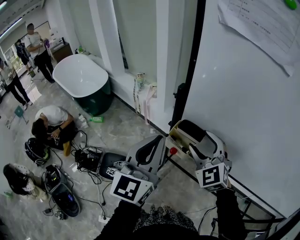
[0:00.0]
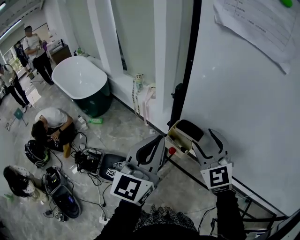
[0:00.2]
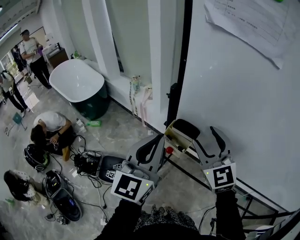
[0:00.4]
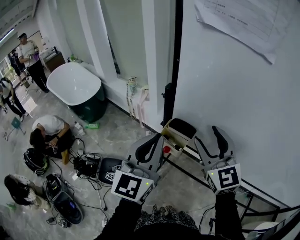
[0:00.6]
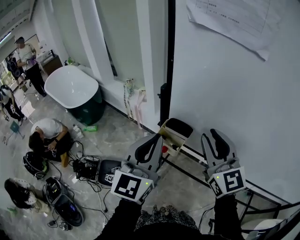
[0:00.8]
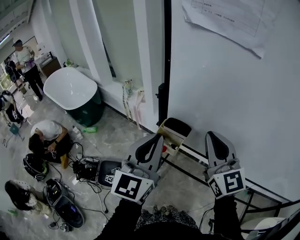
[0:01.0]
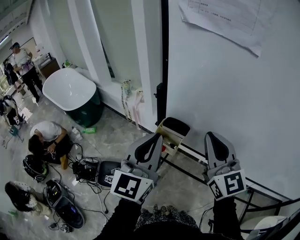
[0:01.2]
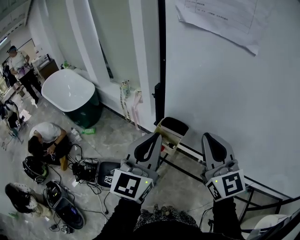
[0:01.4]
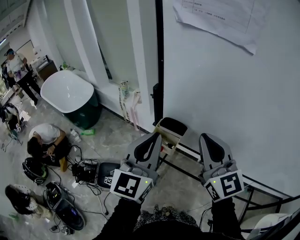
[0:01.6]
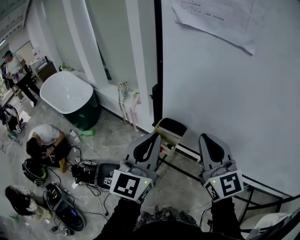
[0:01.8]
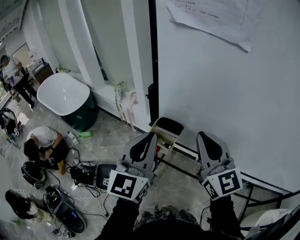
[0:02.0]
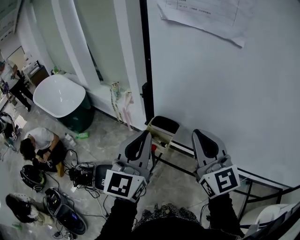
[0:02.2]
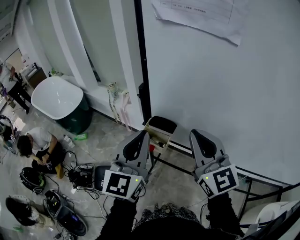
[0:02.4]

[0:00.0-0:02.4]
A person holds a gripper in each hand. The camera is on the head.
0:00.0 to 0:01.2: The left gripper ends up approximately 5 cm from where it was, while the right gripper heads upward, to the right and backward, covering some 15 cm, swivels some 40 degrees, and closes its fingers.
0:01.2 to 0:02.4: Both grippers stay about where they are.

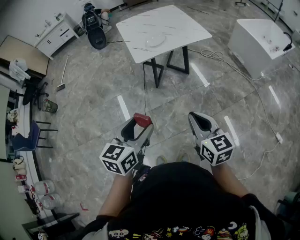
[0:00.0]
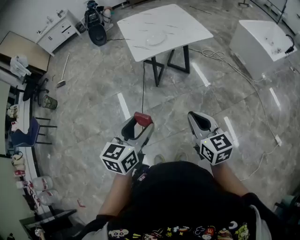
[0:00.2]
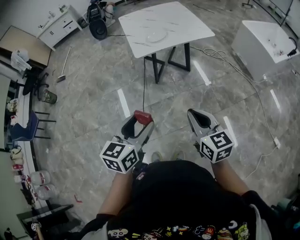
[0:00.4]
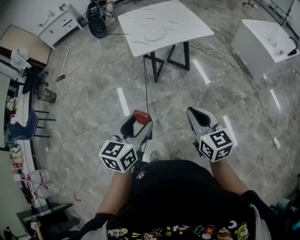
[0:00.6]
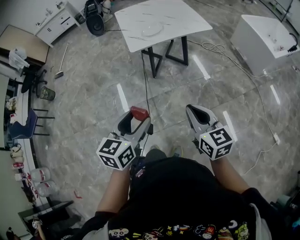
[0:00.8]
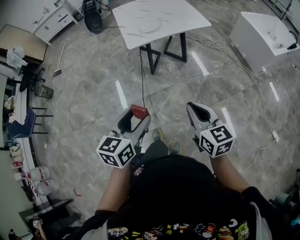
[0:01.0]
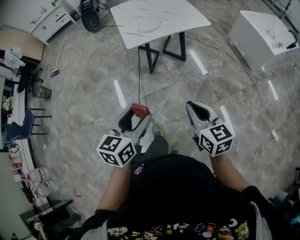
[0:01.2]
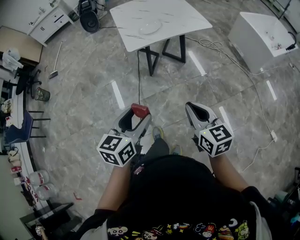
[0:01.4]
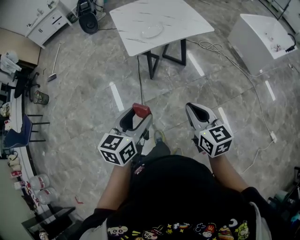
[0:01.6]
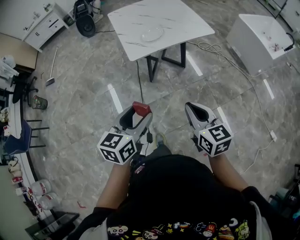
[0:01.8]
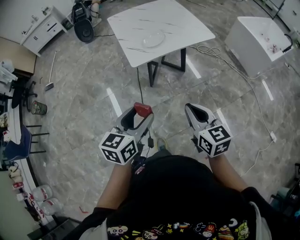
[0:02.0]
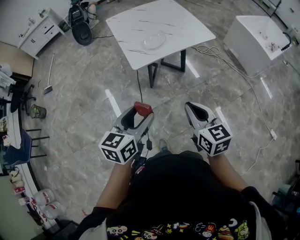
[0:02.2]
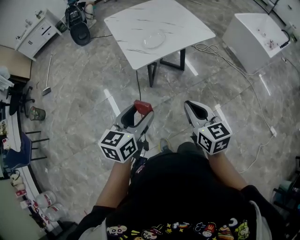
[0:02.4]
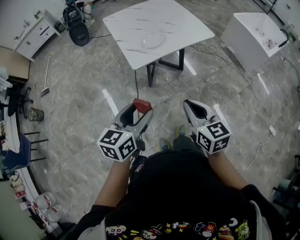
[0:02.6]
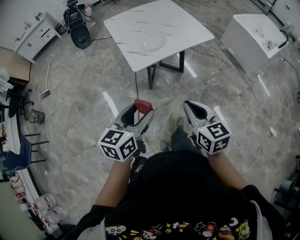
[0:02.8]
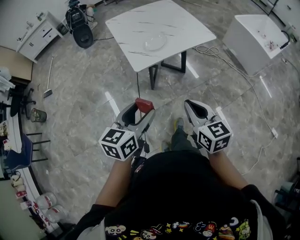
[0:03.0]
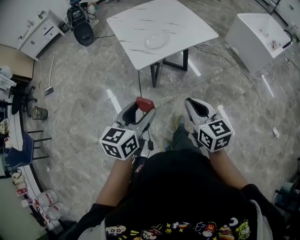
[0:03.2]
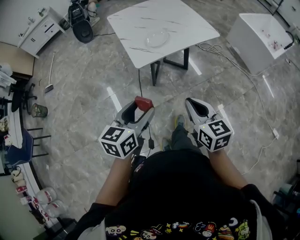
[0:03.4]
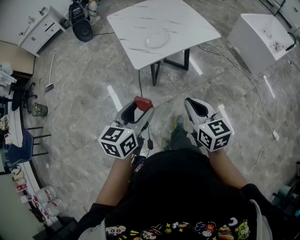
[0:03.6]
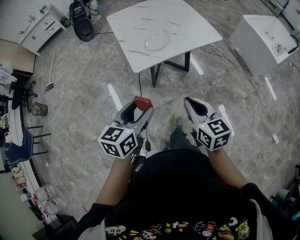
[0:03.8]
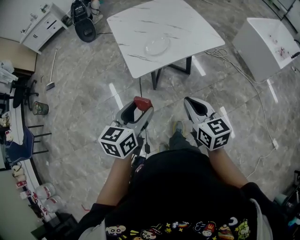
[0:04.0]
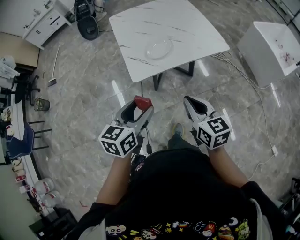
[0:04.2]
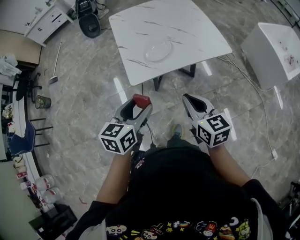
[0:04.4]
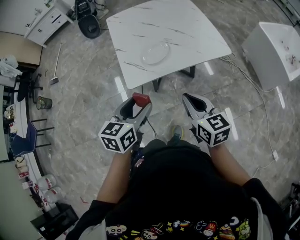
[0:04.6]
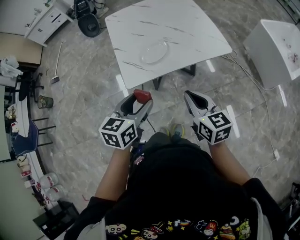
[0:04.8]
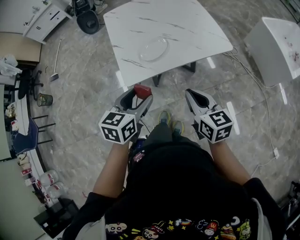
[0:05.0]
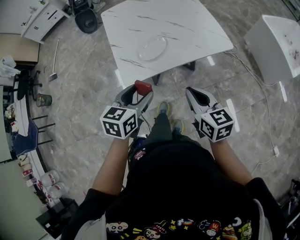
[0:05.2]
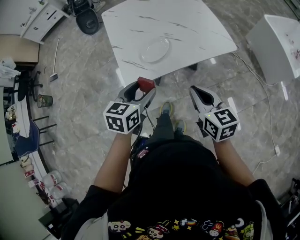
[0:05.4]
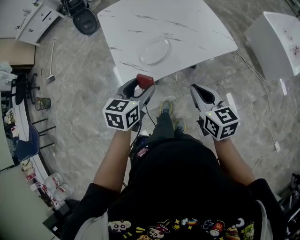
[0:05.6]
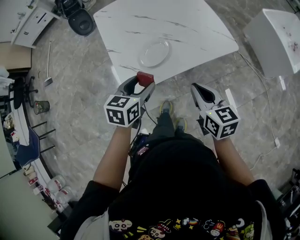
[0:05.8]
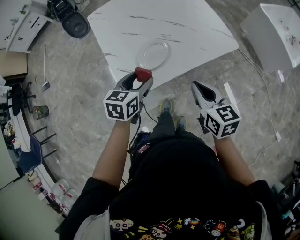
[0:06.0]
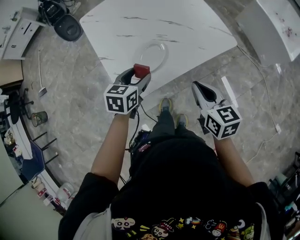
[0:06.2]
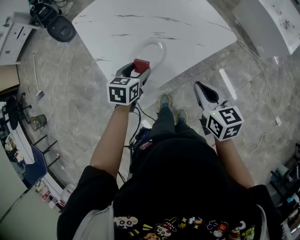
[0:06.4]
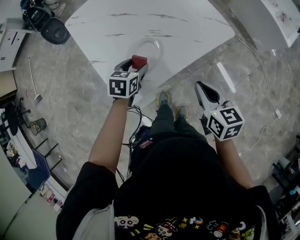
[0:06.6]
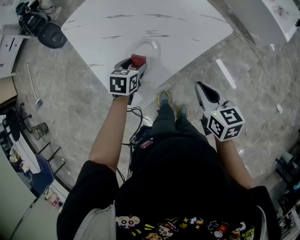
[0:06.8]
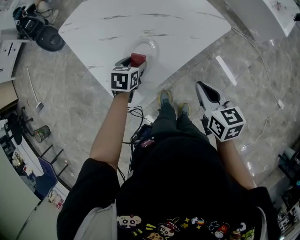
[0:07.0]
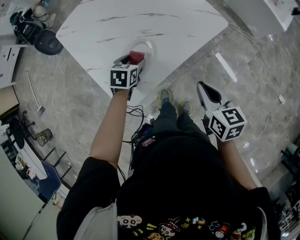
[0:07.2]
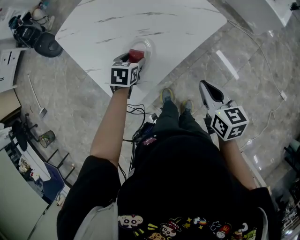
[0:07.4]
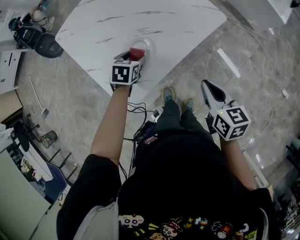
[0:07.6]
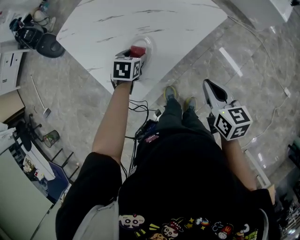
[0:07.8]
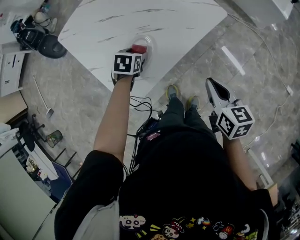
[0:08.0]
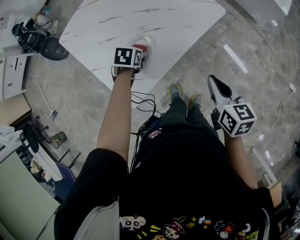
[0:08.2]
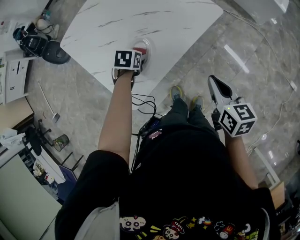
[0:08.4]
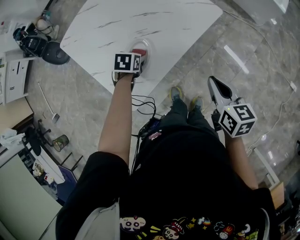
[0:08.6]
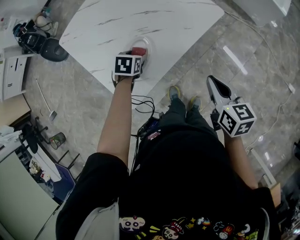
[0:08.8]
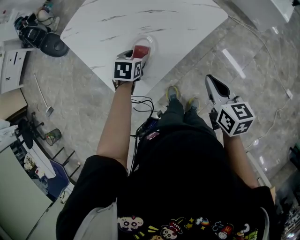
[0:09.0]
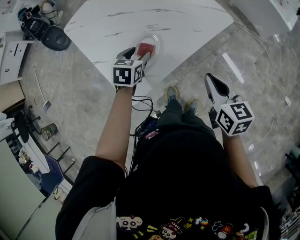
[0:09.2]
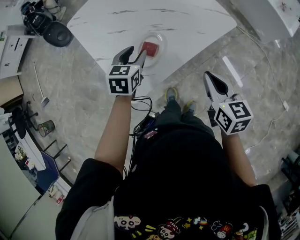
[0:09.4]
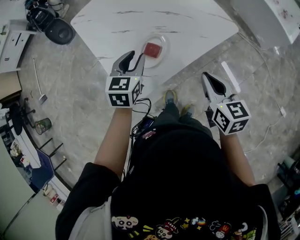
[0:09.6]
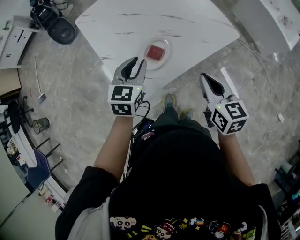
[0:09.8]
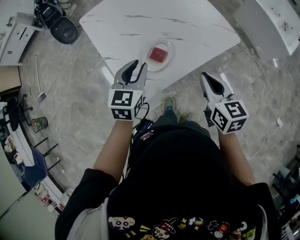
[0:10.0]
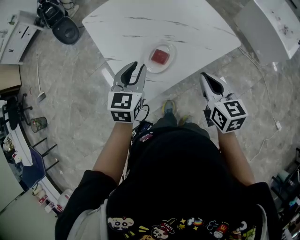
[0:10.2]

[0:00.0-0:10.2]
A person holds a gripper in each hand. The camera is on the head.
0:00.0 to 0:01.4: The left gripper ends up some 5 cm from where it was. The right gripper shifts by about 5 cm.
0:01.4 to 0:03.0: The two grippers go roughly 20 cm forward and to the left.
0:03.0 to 0:04.4: The grippers both shift forward by about 20 cm.
0:04.4 to 0:05.8: Both grippers travel together forward, about 15 cm.
0:05.8 to 0:07.2: The left gripper is displaced forward and downward by some 25 cm, and changes its angle by approximately 20 degrees. Meanwhile the right gripper is displaced downward by about 5 cm, and changes its angle by roughly 20 degrees.
0:07.2 to 0:08.8: There are only small adjustments of the grippers.
0:08.8 to 0:10.2: The right gripper heads to the left, covering some 10 cm, while the left gripper moves upward, backward and to the left, roughly 20 cm, angles its fingers upward, by some 40 degrees, and closes.

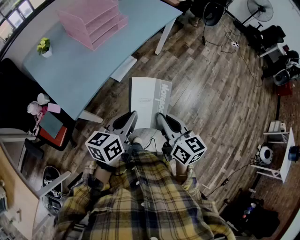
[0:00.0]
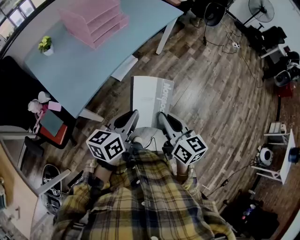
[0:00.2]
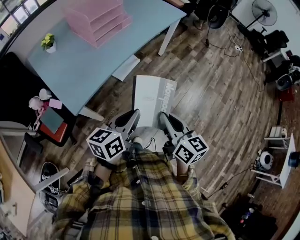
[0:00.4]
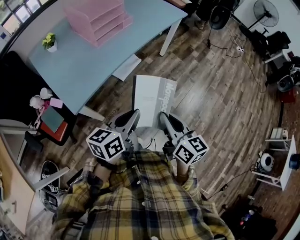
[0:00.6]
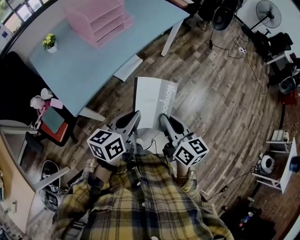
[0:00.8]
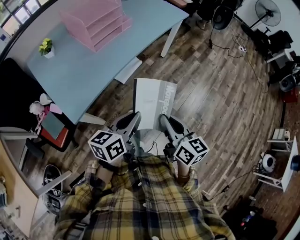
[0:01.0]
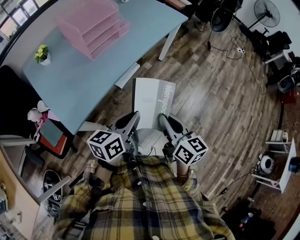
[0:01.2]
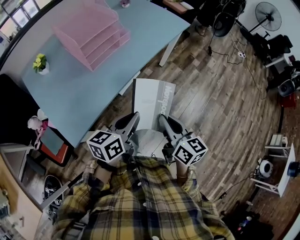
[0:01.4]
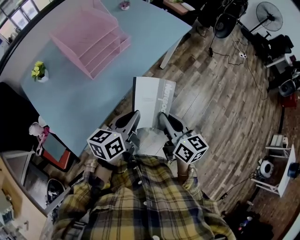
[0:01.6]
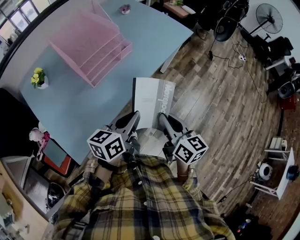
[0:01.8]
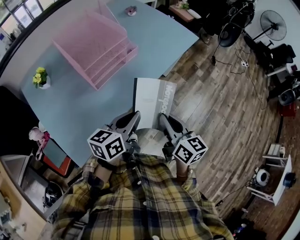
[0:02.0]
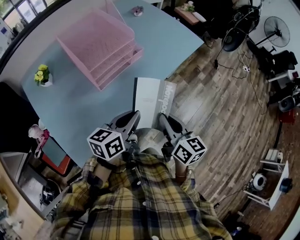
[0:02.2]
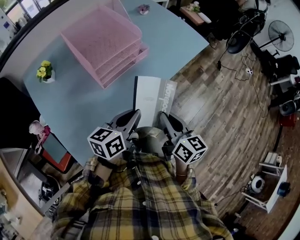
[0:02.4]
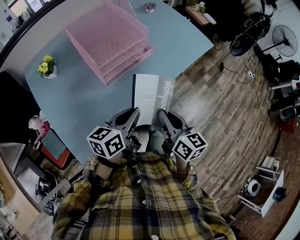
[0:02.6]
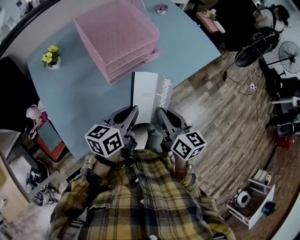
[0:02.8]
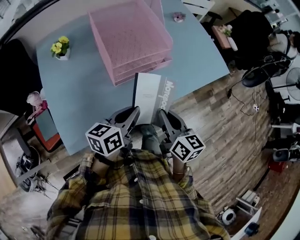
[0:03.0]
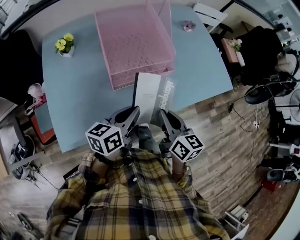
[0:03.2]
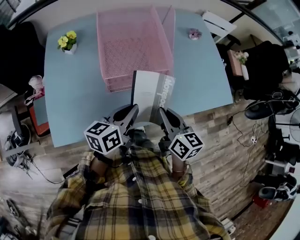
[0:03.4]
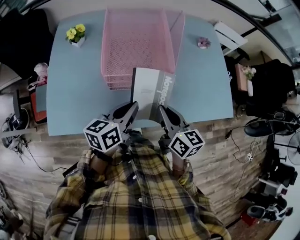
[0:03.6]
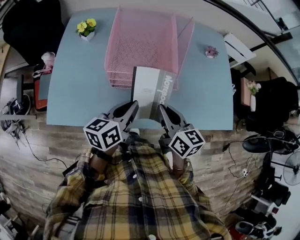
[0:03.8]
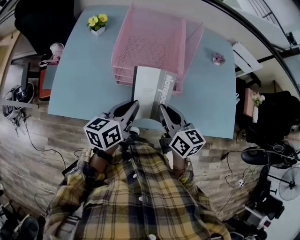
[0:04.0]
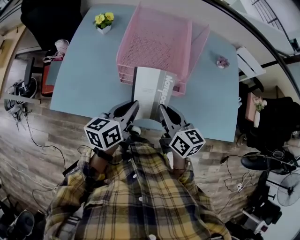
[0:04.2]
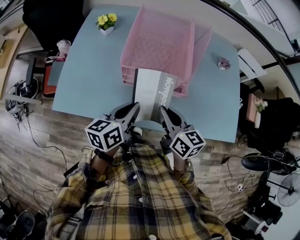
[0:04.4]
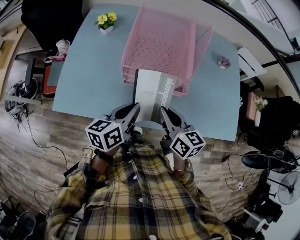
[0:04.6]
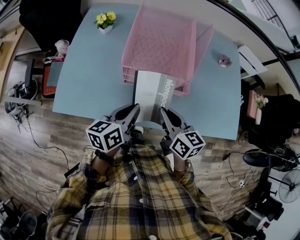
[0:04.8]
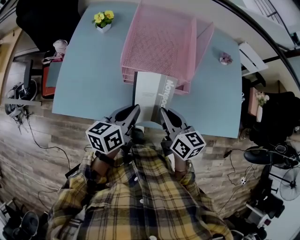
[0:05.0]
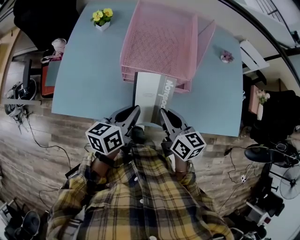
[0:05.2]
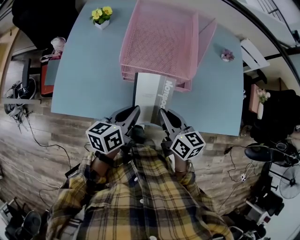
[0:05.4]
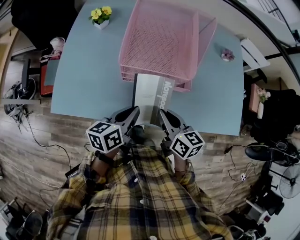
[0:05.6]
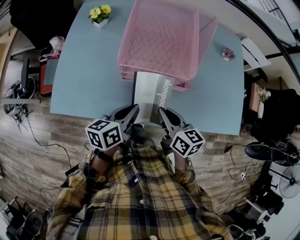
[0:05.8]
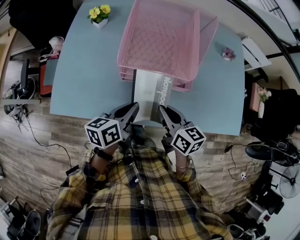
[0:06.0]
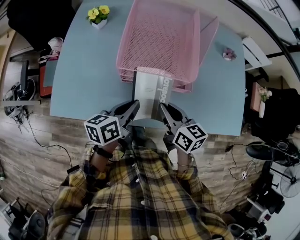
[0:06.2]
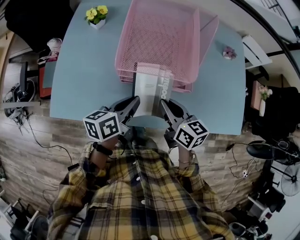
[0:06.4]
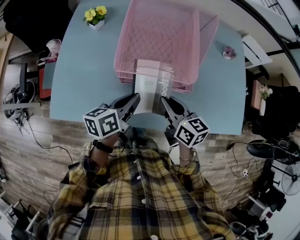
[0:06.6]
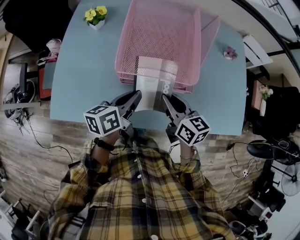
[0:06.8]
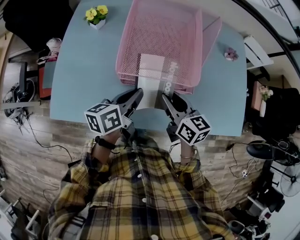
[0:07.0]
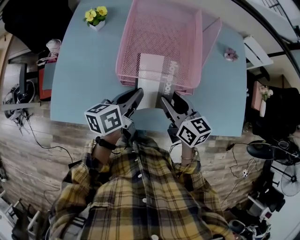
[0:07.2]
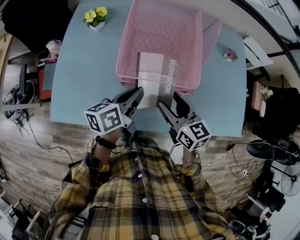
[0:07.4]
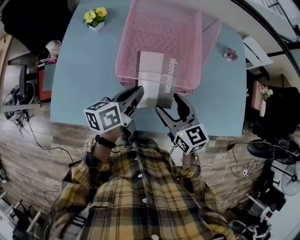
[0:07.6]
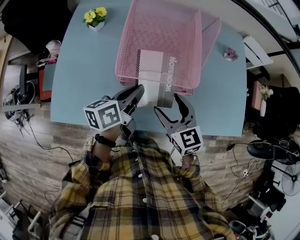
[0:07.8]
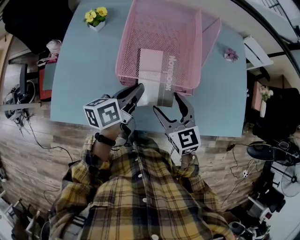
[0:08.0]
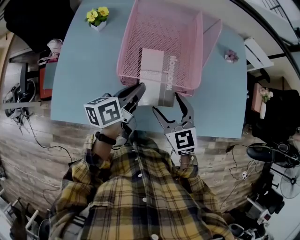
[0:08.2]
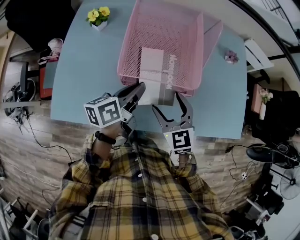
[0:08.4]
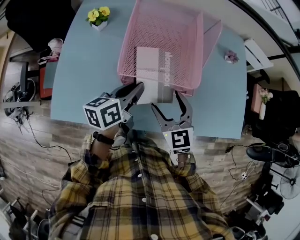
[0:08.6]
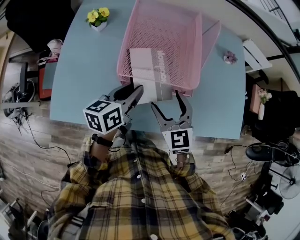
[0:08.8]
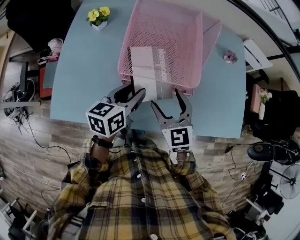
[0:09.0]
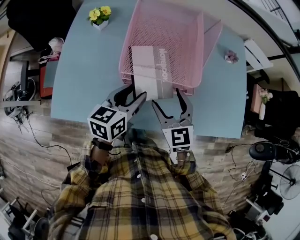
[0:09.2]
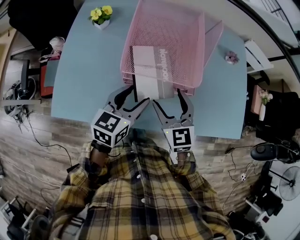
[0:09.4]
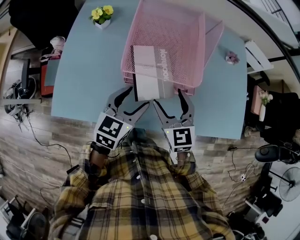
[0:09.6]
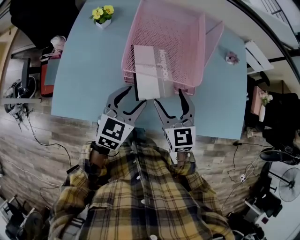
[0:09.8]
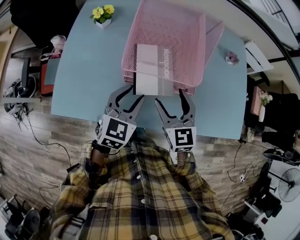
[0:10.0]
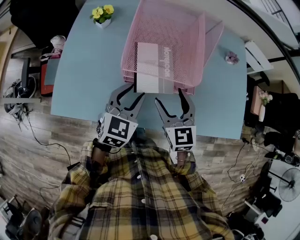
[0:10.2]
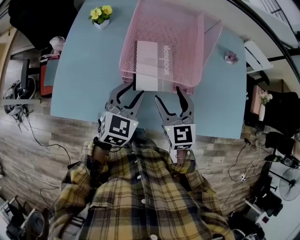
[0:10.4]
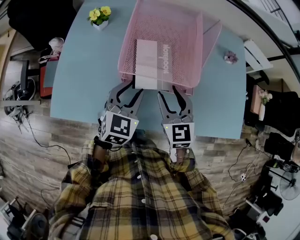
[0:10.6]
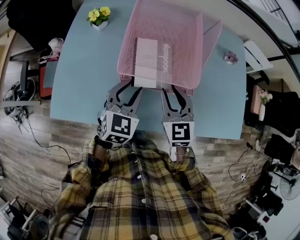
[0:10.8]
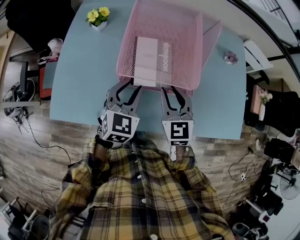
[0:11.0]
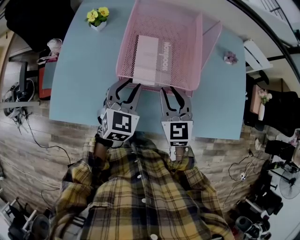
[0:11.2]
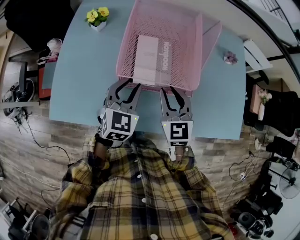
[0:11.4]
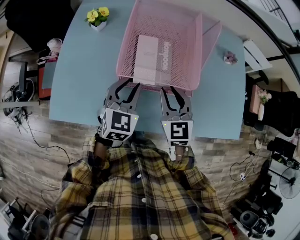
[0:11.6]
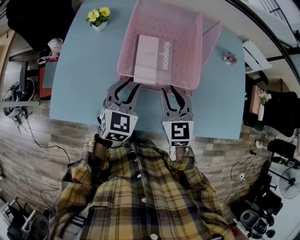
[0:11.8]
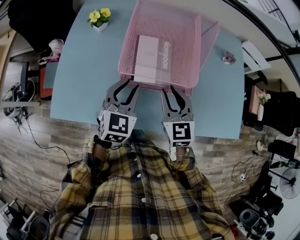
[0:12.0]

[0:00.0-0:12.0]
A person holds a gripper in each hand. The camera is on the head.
0:00.0 to 0:01.6: Both grippers move forward, about 20 cm.
0:01.6 to 0:03.0: The two grippers go some 20 cm forward and to the left. The left gripper turns by roughly 20 degrees, while the right gripper changes its angle by approximately 20 degrees.
0:03.0 to 0:04.4: The right gripper changes place by roughly 10 cm, and swivels roughly 40 degrees; the left gripper rotates approximately 40 degrees.
0:04.4 to 0:06.0: The right gripper shifts roughly 5 cm downward, while the left gripper ends up approximately 5 cm from where it was.
0:06.0 to 0:07.6: The right gripper changes place by approximately 5 cm, rotates some 20 degrees, and opens its fingers; the left gripper goes approximately 10 cm forward.
0:07.6 to 0:09.0: The right gripper turns by about 20 degrees, while the left gripper opens up.
0:09.0 to 0:10.4: The left gripper twists approximately 40 degrees clockwise, seen from behind.
0:10.4 to 0:12.0: The right gripper closes up.
